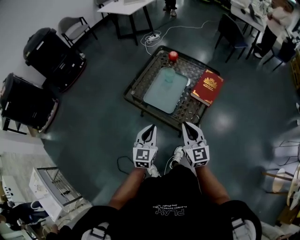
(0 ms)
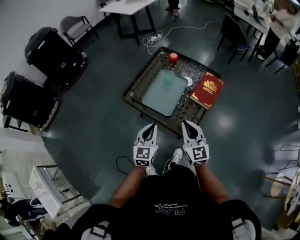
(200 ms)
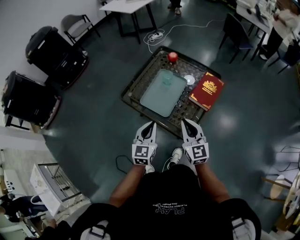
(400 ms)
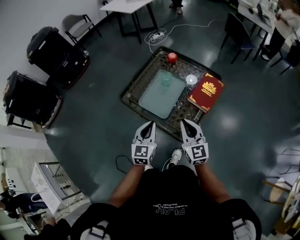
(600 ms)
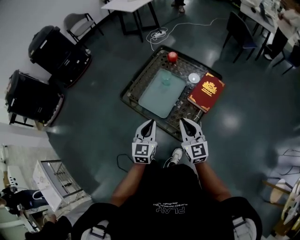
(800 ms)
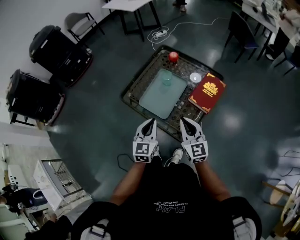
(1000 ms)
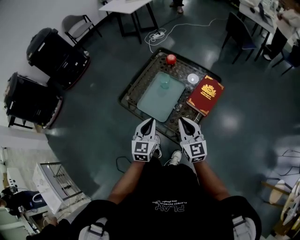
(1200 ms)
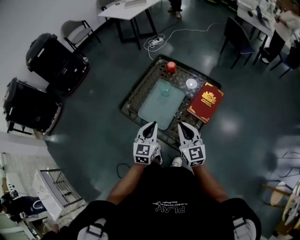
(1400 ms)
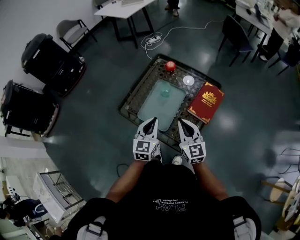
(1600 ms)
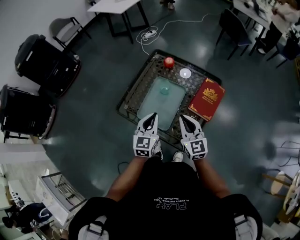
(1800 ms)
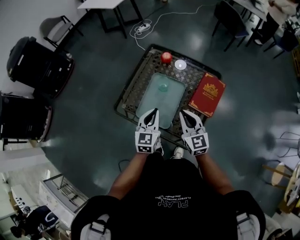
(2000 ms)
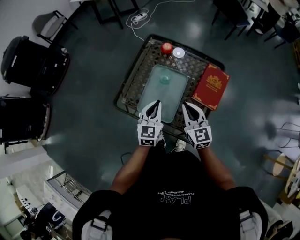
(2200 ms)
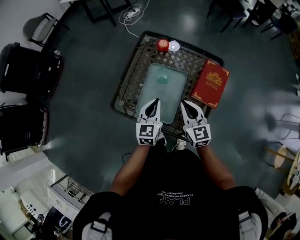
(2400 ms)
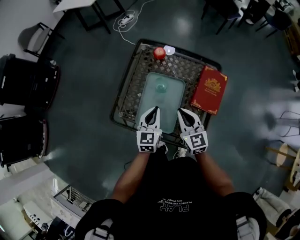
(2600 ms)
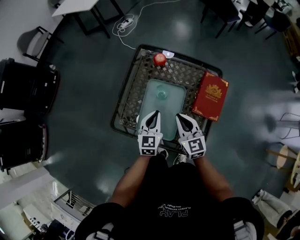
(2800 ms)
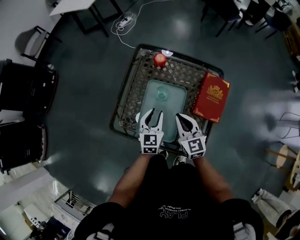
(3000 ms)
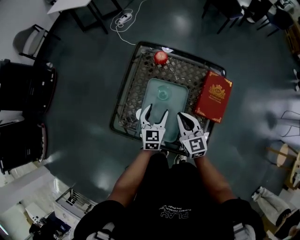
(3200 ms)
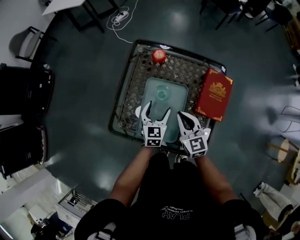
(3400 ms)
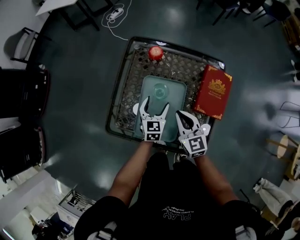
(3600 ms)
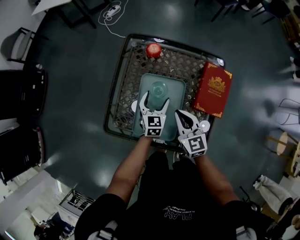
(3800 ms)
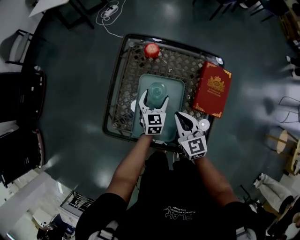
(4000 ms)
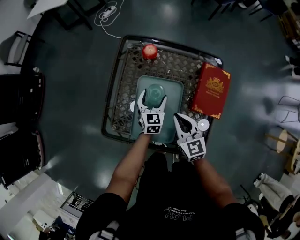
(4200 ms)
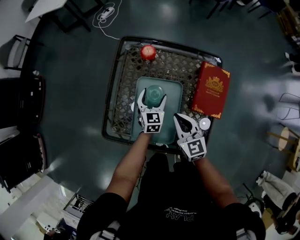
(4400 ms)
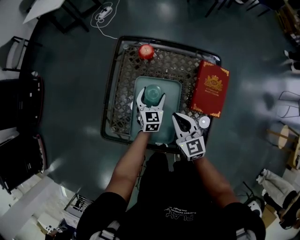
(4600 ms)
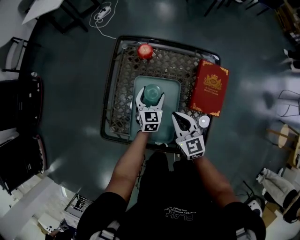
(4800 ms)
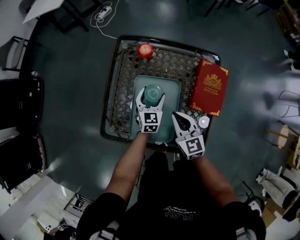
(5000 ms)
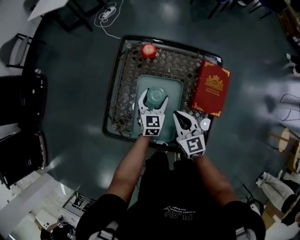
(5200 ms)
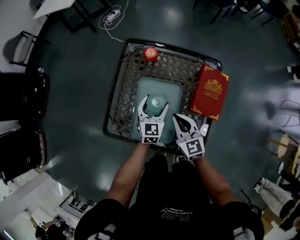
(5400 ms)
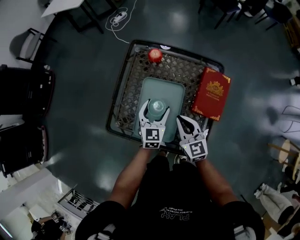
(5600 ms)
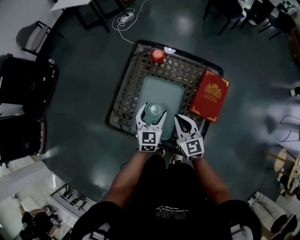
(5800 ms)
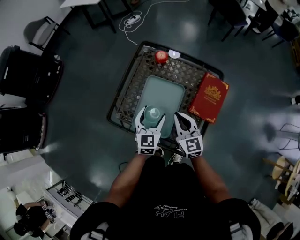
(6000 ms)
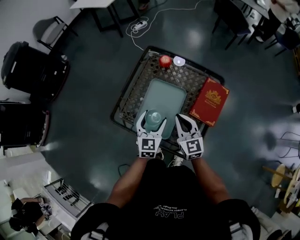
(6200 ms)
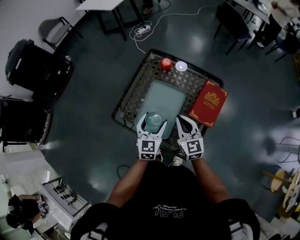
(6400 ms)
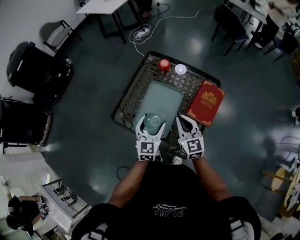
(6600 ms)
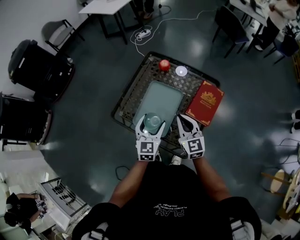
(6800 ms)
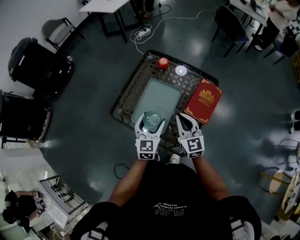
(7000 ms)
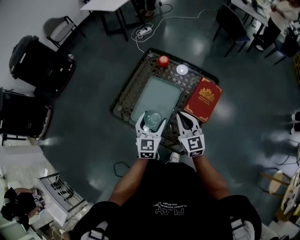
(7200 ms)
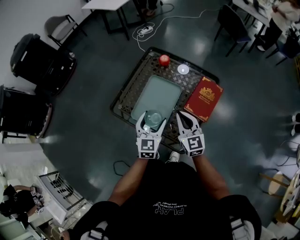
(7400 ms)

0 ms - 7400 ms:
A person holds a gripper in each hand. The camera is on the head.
0 ms - 1400 ms: The right gripper moves forward, some 10 cm. The left gripper travels forward and to the right by roughly 15 cm.
1400 ms - 3000 ms: The grippers both shift forward and downward by about 20 cm.
3000 ms - 4400 ms: The right gripper shifts by some 5 cm. The left gripper heads downward and forward, covering about 15 cm, and opens up.
4400 ms - 6000 ms: The right gripper heads upward, covering roughly 5 cm. The left gripper shifts some 20 cm upward and backward.
6000 ms - 7400 ms: The grippers both shift backward and upward by some 10 cm.

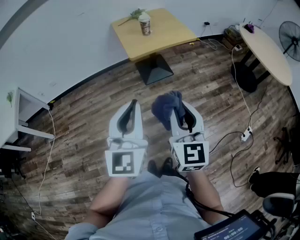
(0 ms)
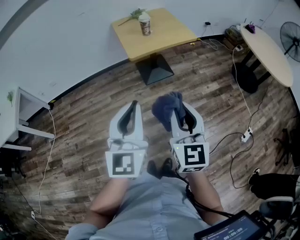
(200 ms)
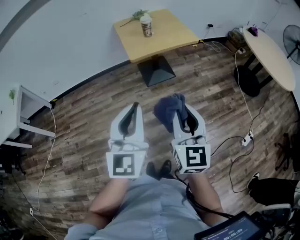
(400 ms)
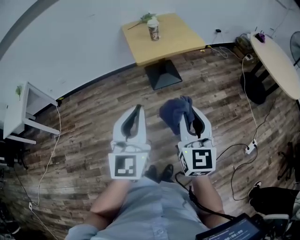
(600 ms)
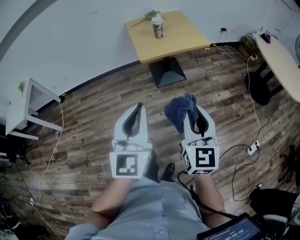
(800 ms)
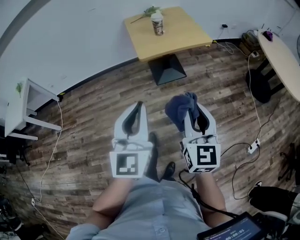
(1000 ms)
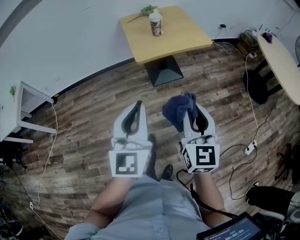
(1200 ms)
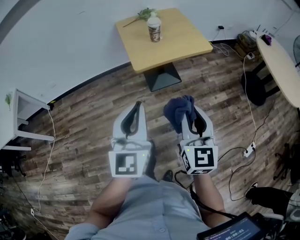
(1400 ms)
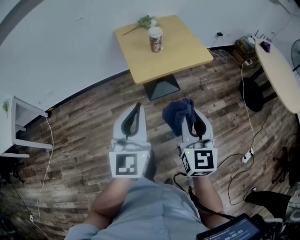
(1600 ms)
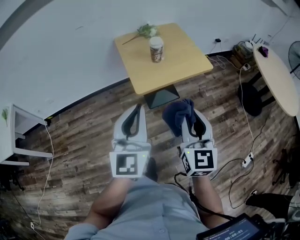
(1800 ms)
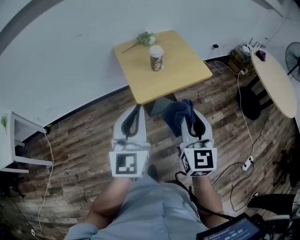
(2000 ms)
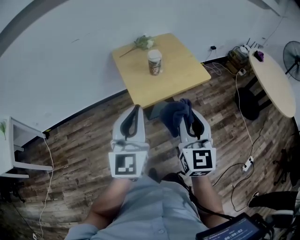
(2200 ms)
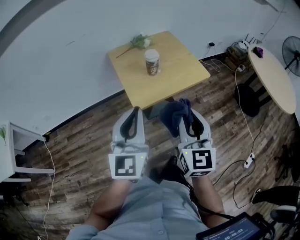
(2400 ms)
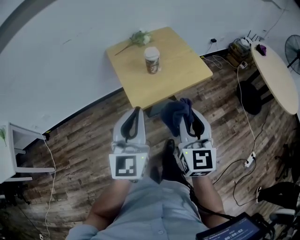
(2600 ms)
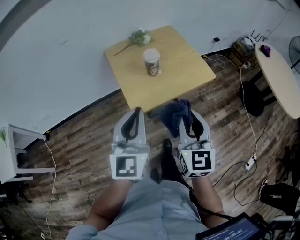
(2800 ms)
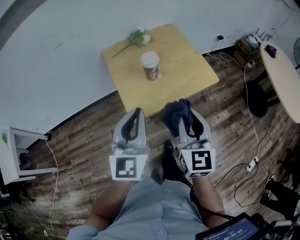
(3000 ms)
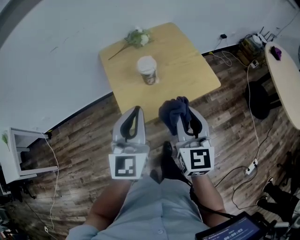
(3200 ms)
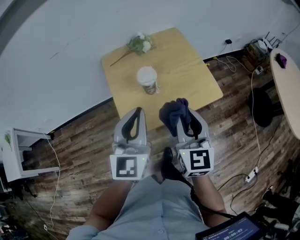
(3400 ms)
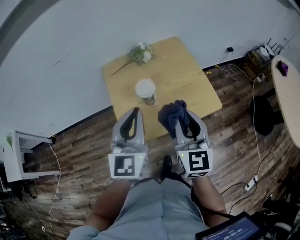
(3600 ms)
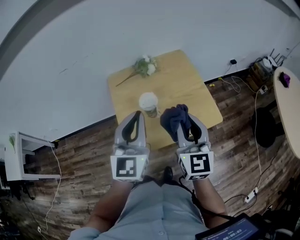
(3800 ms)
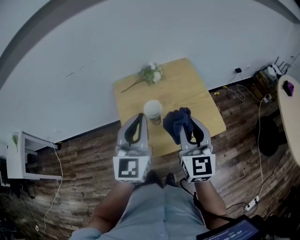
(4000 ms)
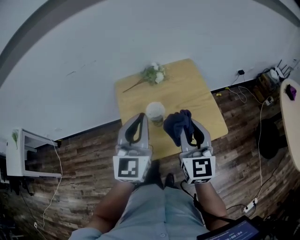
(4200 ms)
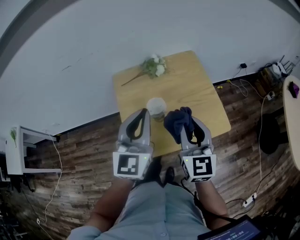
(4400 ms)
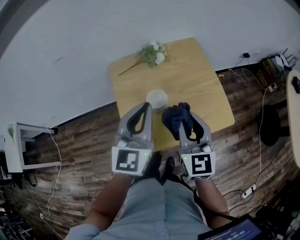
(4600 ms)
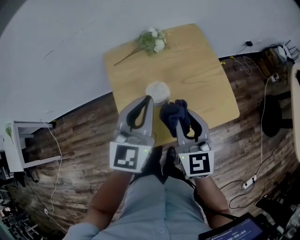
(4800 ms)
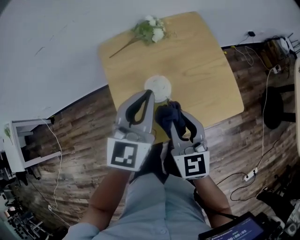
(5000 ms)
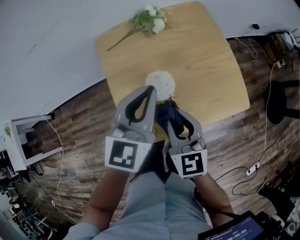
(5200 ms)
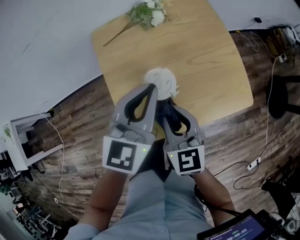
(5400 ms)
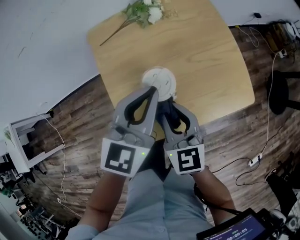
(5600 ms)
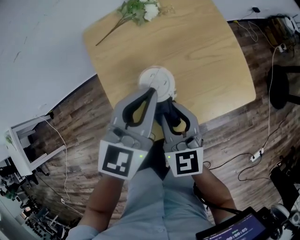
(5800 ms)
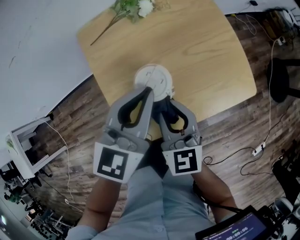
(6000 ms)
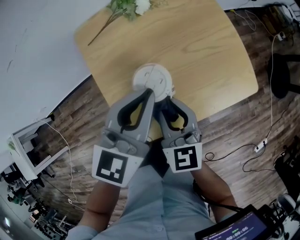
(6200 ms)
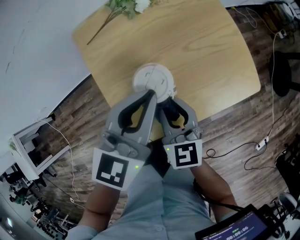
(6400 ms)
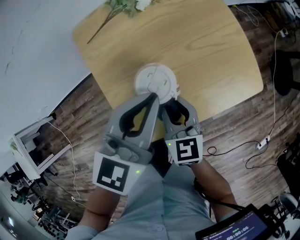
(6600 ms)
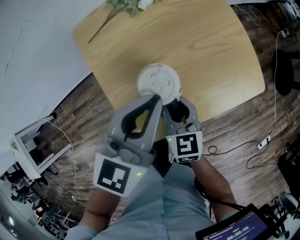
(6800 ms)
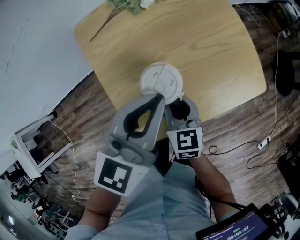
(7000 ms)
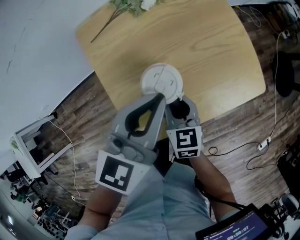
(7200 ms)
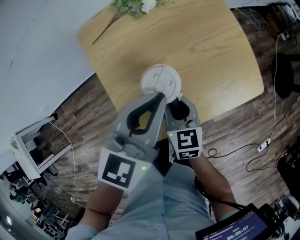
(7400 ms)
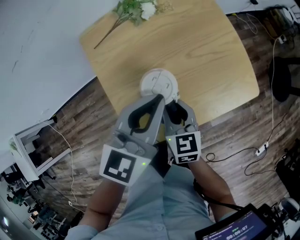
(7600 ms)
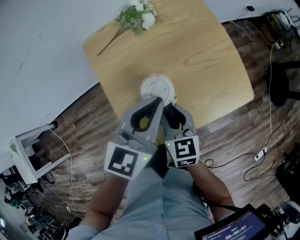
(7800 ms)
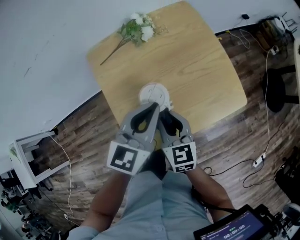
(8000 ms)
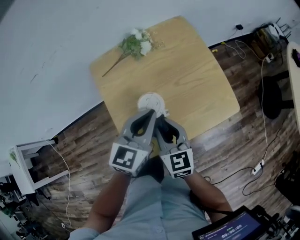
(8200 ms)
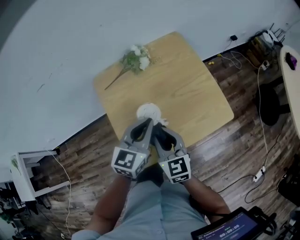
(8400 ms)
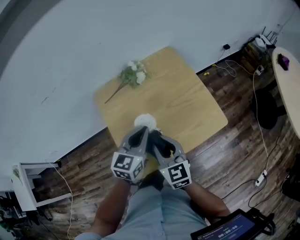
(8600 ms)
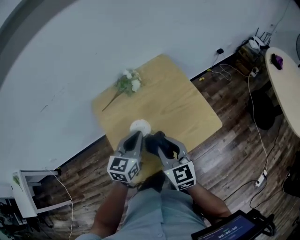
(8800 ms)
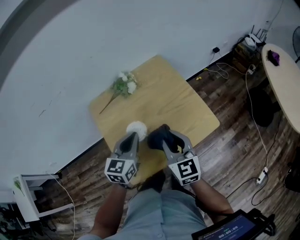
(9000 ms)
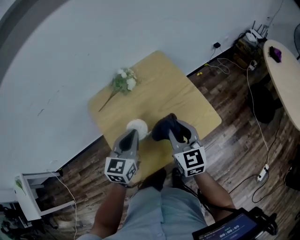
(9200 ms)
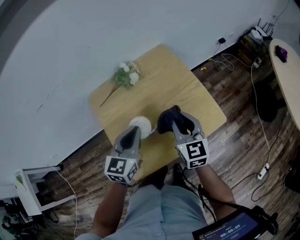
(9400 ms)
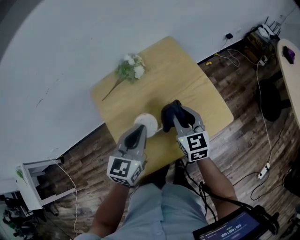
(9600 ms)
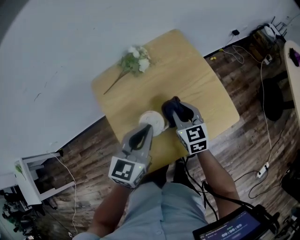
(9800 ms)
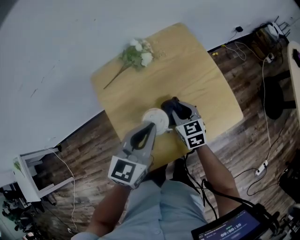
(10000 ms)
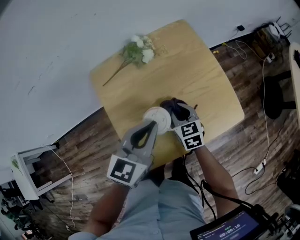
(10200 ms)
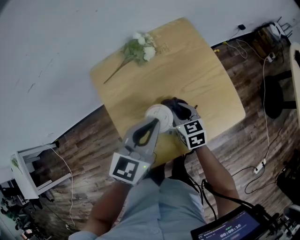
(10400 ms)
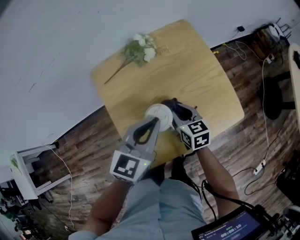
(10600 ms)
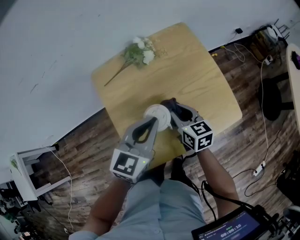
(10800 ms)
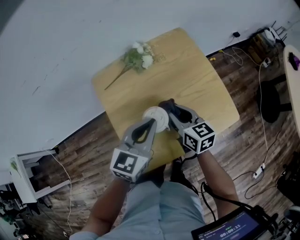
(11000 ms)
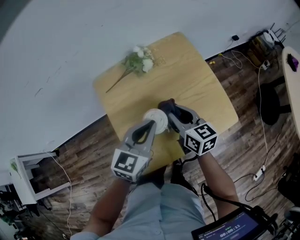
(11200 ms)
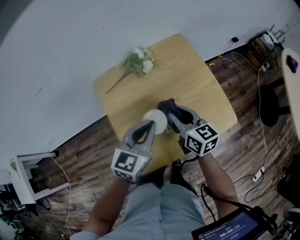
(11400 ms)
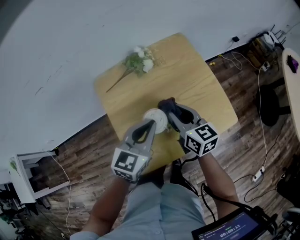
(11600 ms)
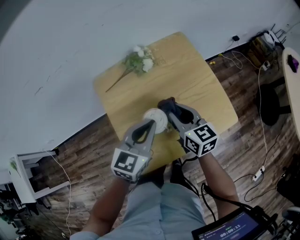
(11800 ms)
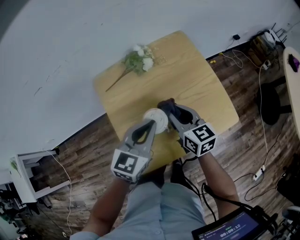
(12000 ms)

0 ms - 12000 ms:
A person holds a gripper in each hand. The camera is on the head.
0 ms - 1600 ms: The two grippers go about 25 cm forward.
1600 ms - 3000 ms: Both grippers travel together forward, some 25 cm.
3000 ms - 4400 ms: The grippers both shift forward by about 20 cm.
4400 ms - 6000 ms: The left gripper shifts about 15 cm downward and forward, and rotates some 30 degrees, while the right gripper shifts about 20 cm downward and to the left.
6000 ms - 7600 ms: The right gripper moves downward, roughly 5 cm.
7600 ms - 9000 ms: The right gripper moves upward and to the right, some 20 cm, and turns by approximately 20 degrees.
9000 ms - 10400 ms: The right gripper goes approximately 20 cm downward and forward, and rotates roughly 30 degrees.
10400 ms - 12000 ms: The right gripper moves upward, about 10 cm.

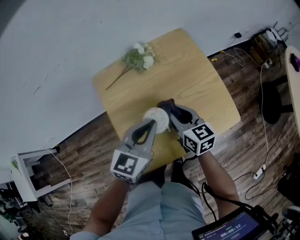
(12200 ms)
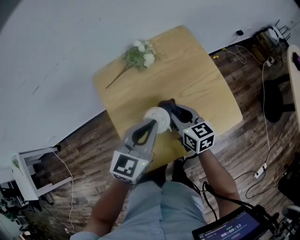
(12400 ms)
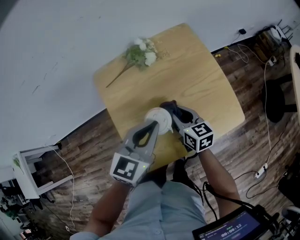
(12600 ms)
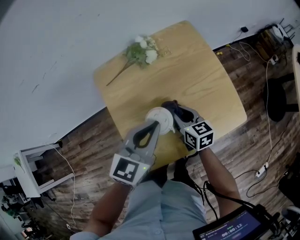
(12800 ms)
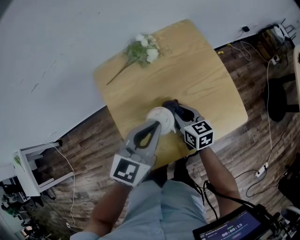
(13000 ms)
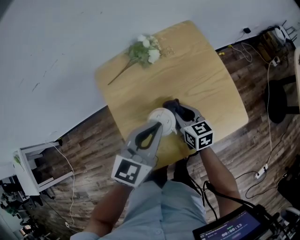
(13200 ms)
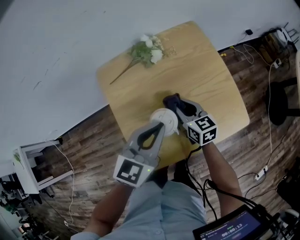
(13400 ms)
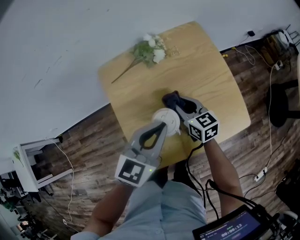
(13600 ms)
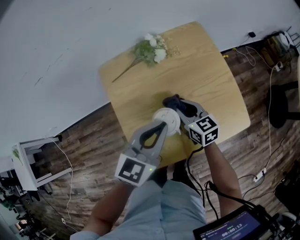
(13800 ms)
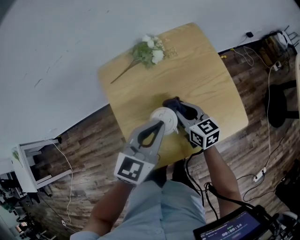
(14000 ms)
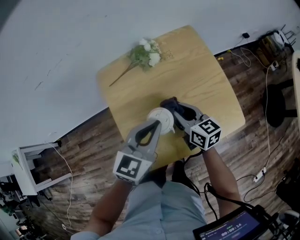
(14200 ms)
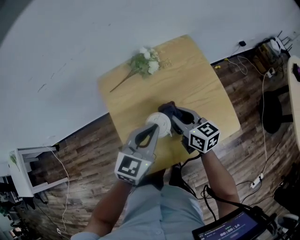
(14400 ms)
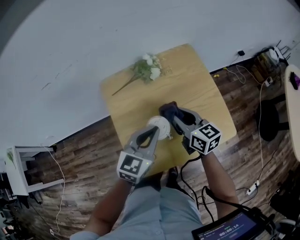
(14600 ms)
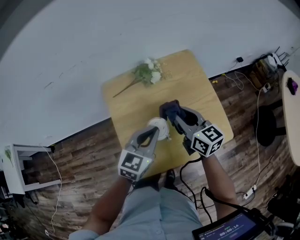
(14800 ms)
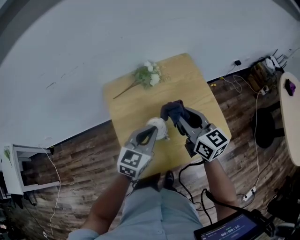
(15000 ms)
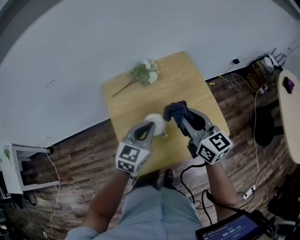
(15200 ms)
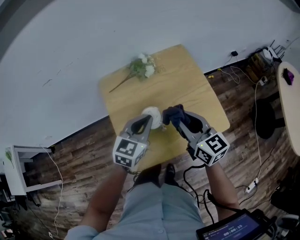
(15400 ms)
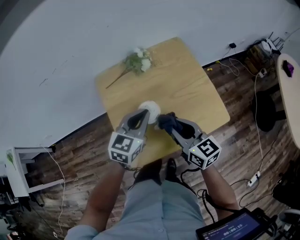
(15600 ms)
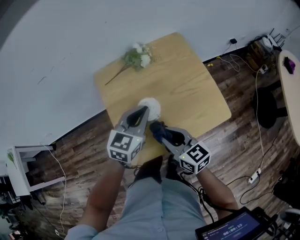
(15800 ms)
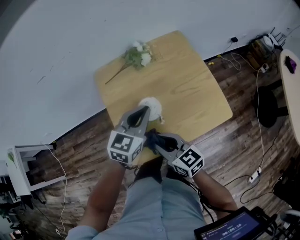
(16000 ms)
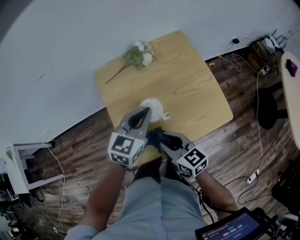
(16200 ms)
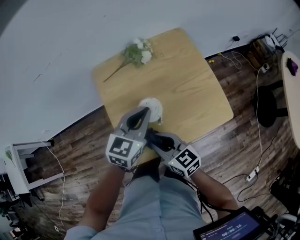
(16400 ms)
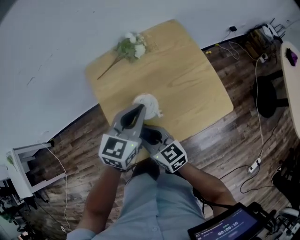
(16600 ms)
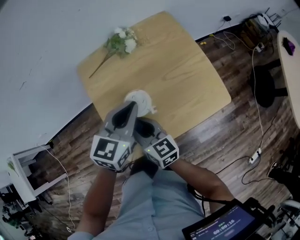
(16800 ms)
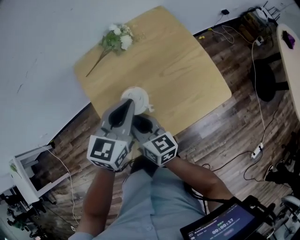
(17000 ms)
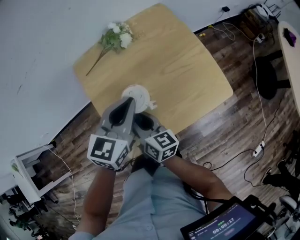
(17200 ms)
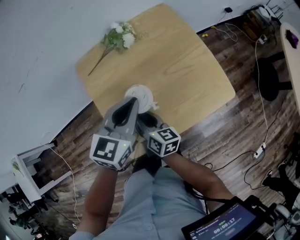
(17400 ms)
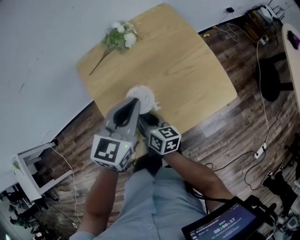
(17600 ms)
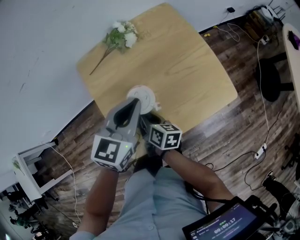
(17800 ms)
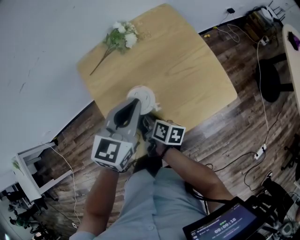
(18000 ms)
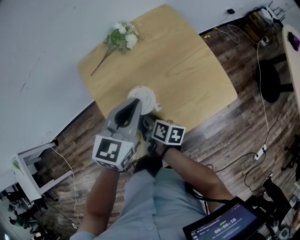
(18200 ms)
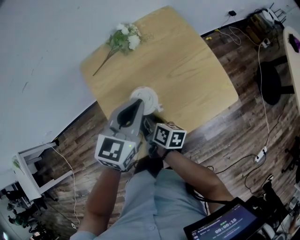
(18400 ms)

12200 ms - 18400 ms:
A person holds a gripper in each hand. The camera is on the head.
12200 ms - 13800 ms: The right gripper shifts some 5 cm downward.
13800 ms - 15400 ms: The right gripper is displaced upward and backward by approximately 20 cm.
15400 ms - 16800 ms: The right gripper moves to the left and downward, roughly 20 cm.
16800 ms - 18400 ms: The right gripper moves downward, approximately 10 cm, and twists approximately 40 degrees clockwise, seen from behind.
